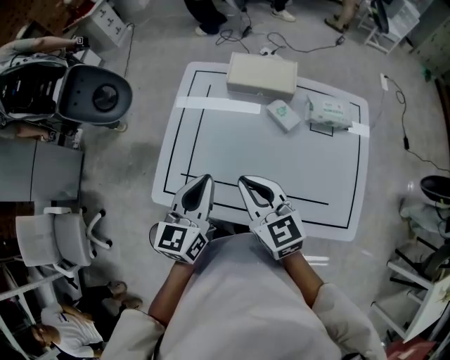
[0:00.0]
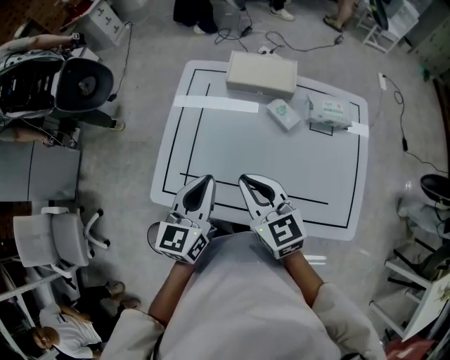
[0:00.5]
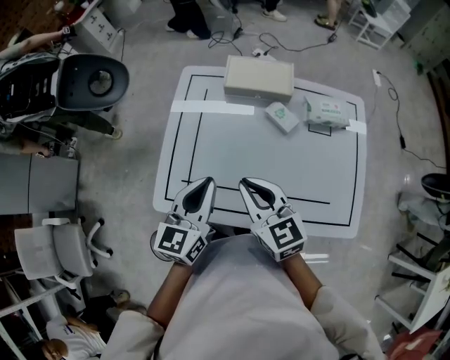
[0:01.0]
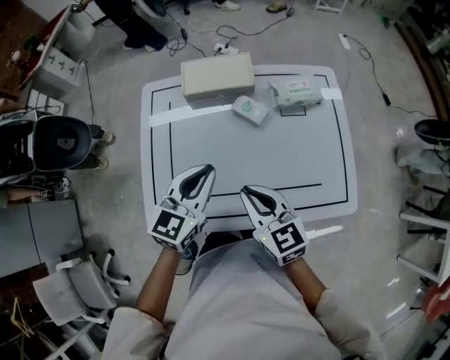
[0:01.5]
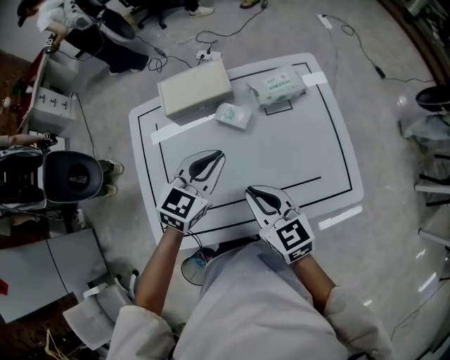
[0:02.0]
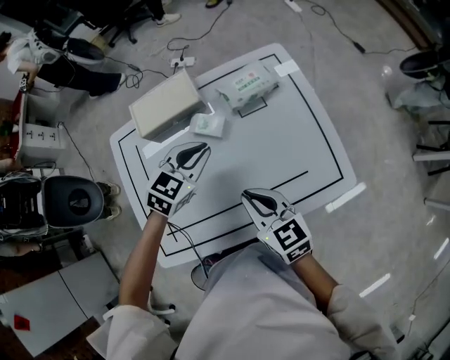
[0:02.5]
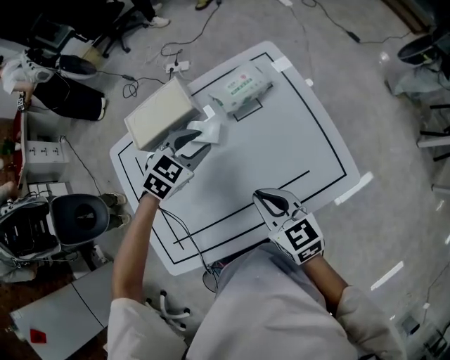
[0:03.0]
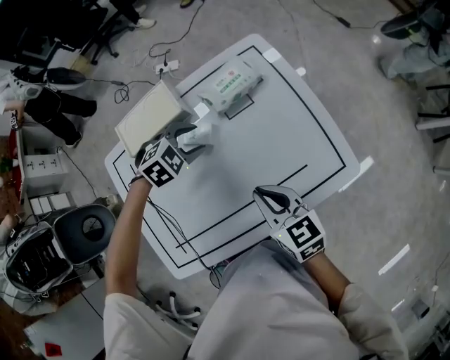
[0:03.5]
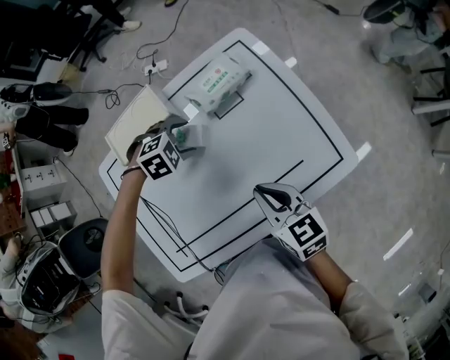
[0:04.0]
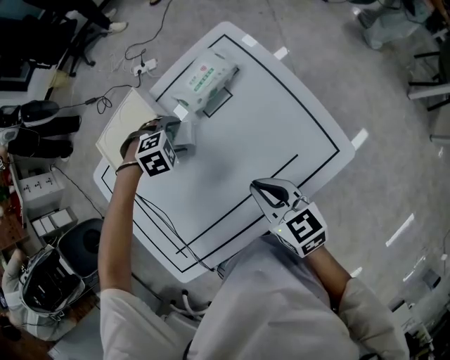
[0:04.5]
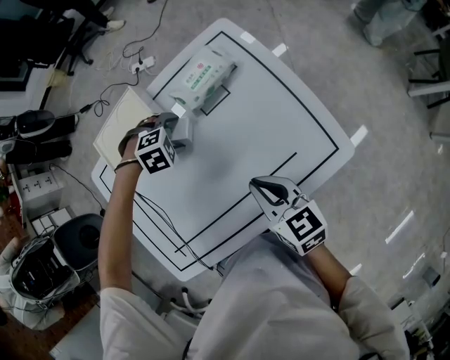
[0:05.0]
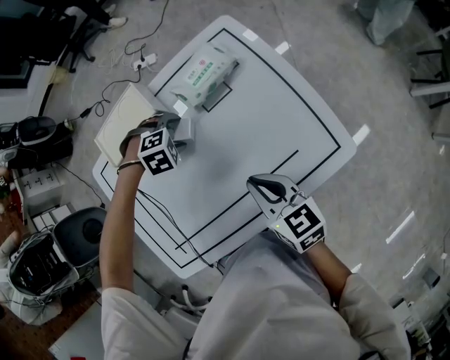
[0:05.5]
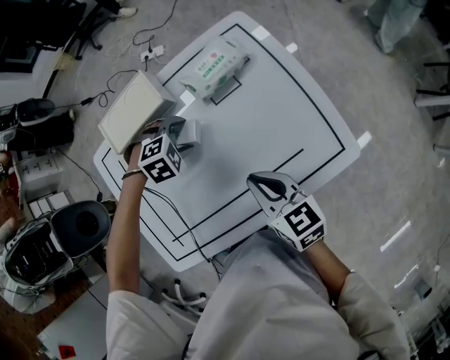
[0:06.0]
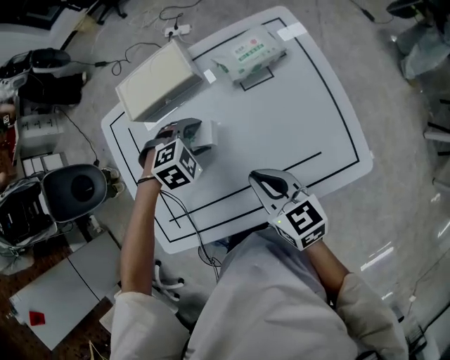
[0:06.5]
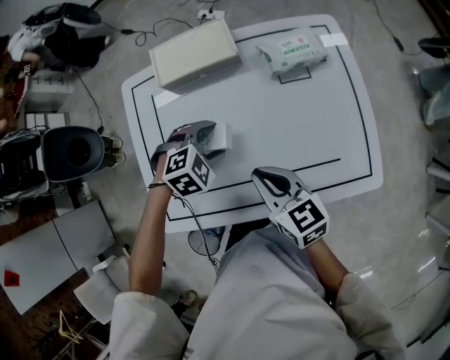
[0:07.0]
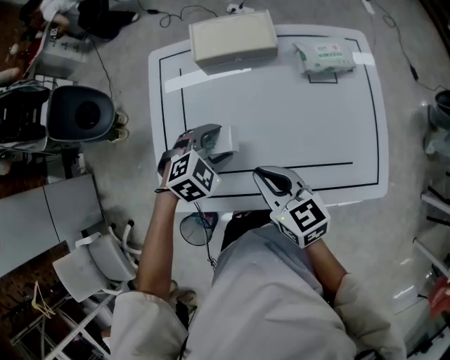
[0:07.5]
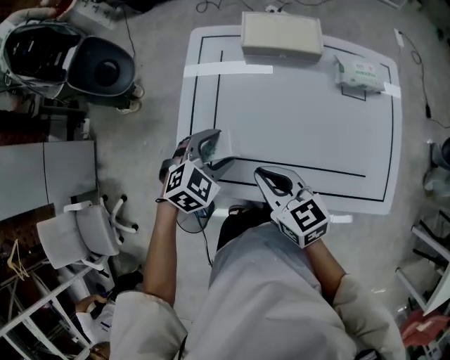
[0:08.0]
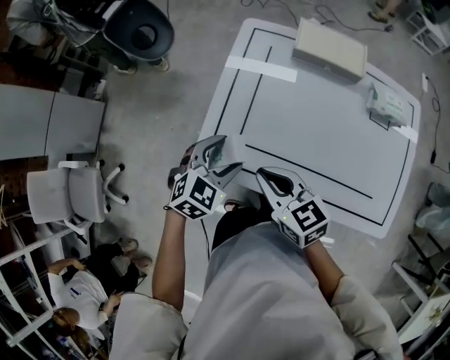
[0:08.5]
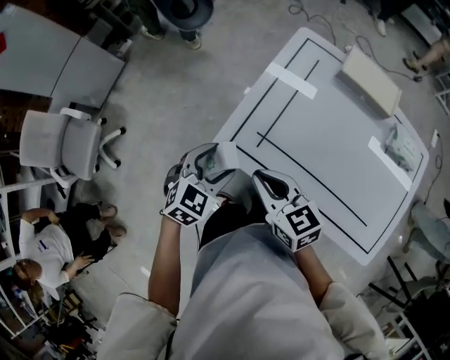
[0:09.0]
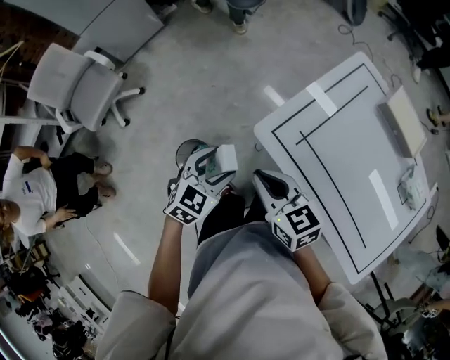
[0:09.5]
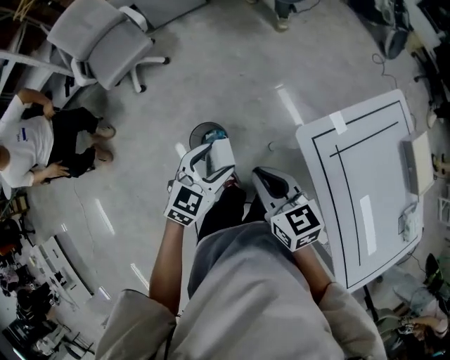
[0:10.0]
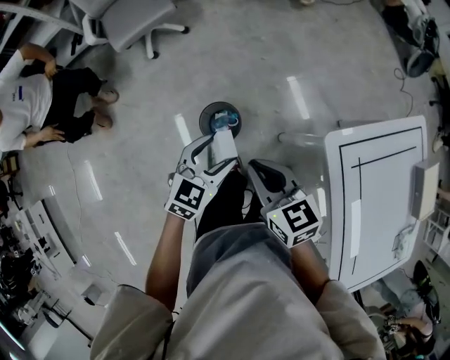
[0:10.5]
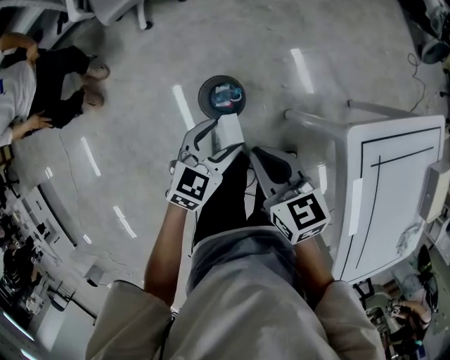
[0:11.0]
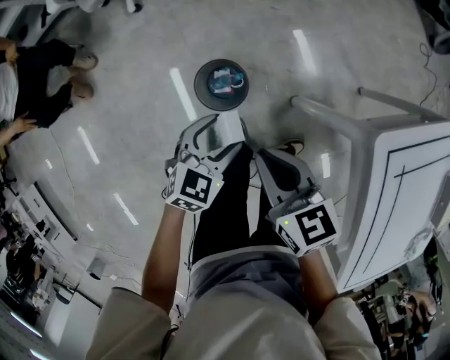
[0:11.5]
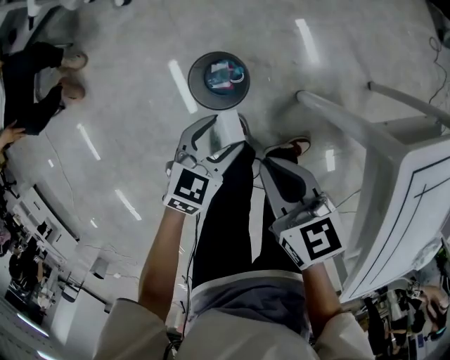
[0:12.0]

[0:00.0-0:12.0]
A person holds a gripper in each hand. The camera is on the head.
0:00.0 to 0:02.0: The left gripper moves roughly 20 cm, and rotates about 50 degrees, while the right gripper ends up approximately 10 cm from where it was, and swivels about 20 degrees.
0:02.0 to 0:04.0: The left gripper goes about 15 cm downward, tips its fingers downward by some 50 degrees, and opens up, while the right gripper changes place by about 10 cm.
0:04.0 to 0:06.0: There are only small adjustments of the grippers.
0:06.0 to 0:08.0: The right gripper changes place by roughly 25 cm, and swivels some 40 degrees; the left gripper changes place by some 30 cm, and twists some 50 degrees counterclockwise, seen from behind.
0:08.0 to 0:10.0: The right gripper ends up about 35 cm from where it was, and rotates approximately 50 degrees; the left gripper shifts by some 40 cm, and rotates about 80 degrees.
0:10.0 to 0:12.0: Both grippers travel together downward, roughly 25 cm. The left gripper rotates about 20 degrees.

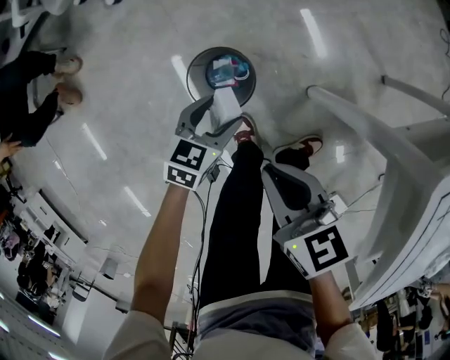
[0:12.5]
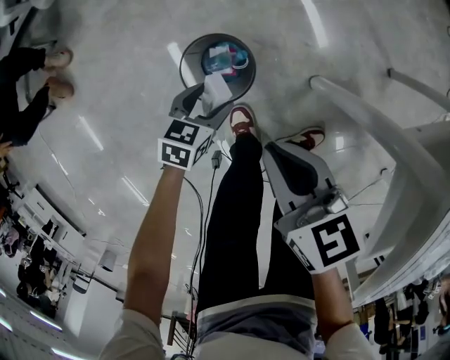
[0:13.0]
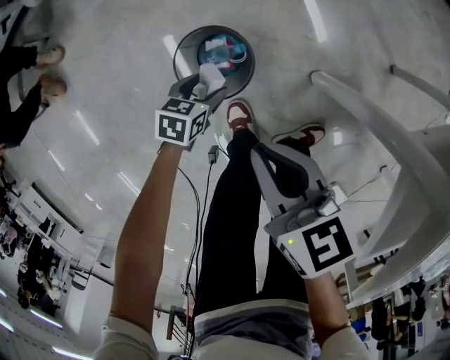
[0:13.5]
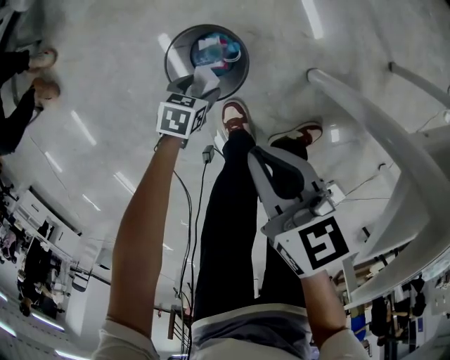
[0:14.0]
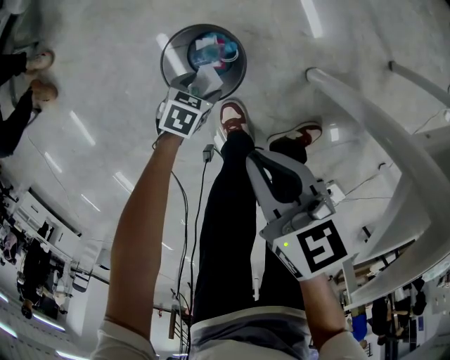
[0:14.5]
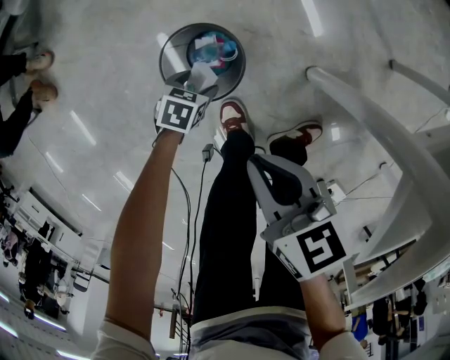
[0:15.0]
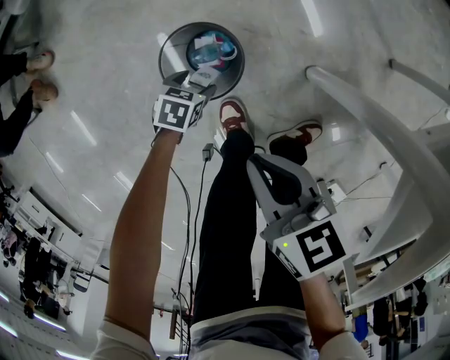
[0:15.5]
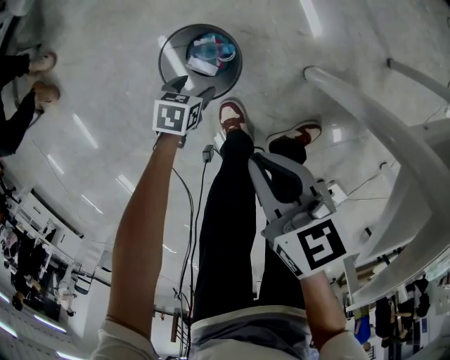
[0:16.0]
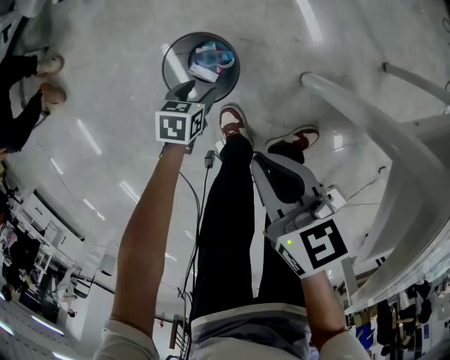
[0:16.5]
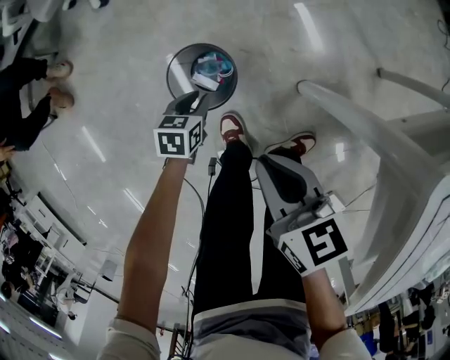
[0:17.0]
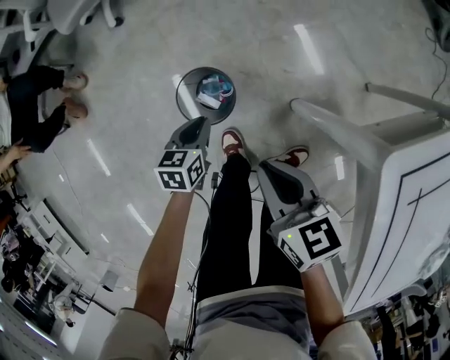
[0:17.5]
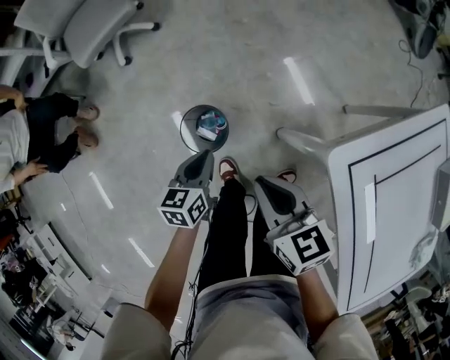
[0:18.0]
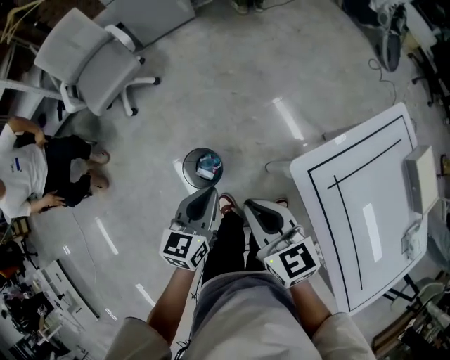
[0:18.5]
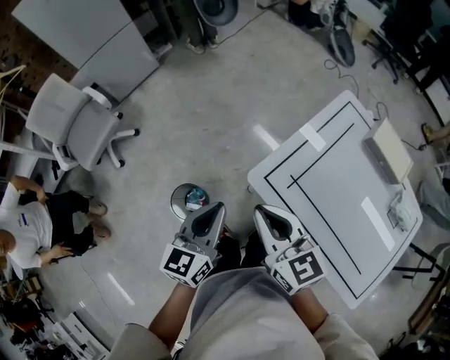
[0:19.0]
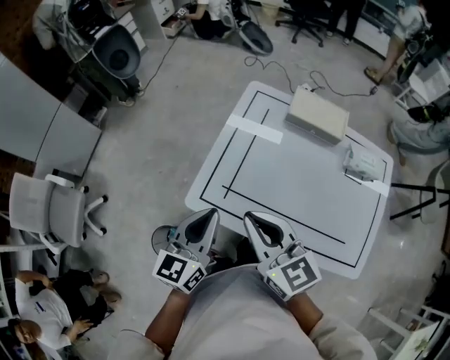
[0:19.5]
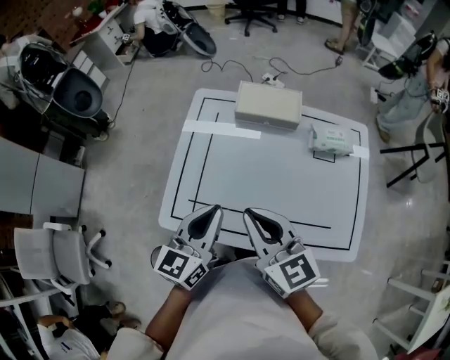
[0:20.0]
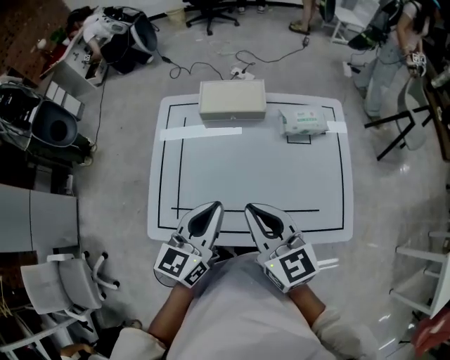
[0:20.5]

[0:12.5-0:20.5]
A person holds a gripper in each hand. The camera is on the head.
0:12.5 to 0:14.5: The left gripper is displaced downward by some 20 cm, and swivels roughly 20 degrees; the right gripper goes some 10 cm downward.
0:14.5 to 0:16.5: The grippers move only a little.
0:16.5 to 0:18.5: The right gripper travels upward by some 35 cm, and changes its angle by roughly 30 degrees, while the left gripper heads upward, covering roughly 50 cm, tilts its fingers roughly 40 degrees upward, and closes its fingers.
0:18.5 to 0:20.5: The two grippers travel together, some 50 cm. The right gripper turns by roughly 70 degrees. Meanwhile the left gripper swivels roughly 70 degrees.

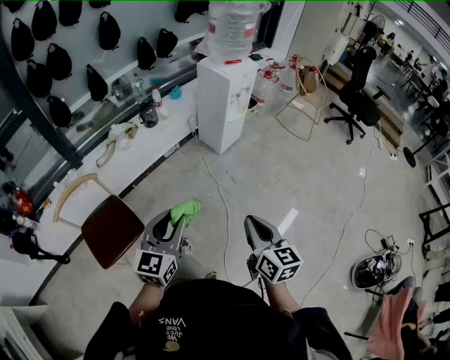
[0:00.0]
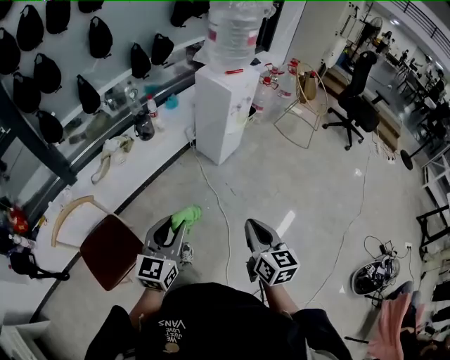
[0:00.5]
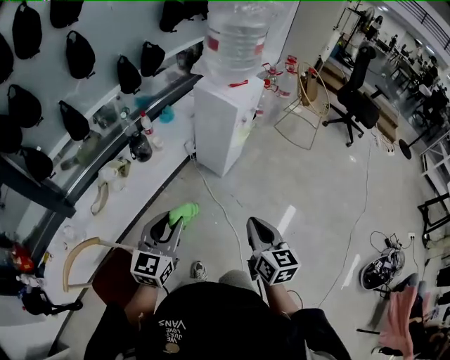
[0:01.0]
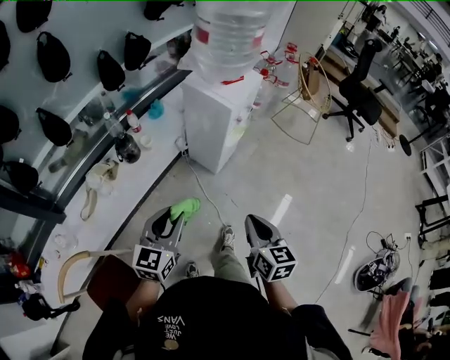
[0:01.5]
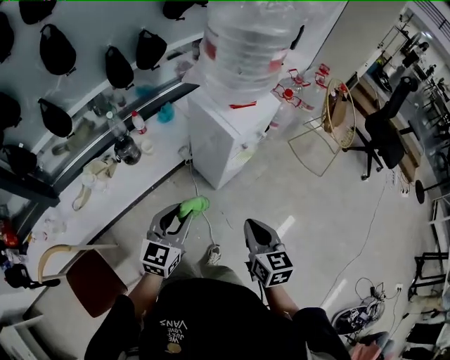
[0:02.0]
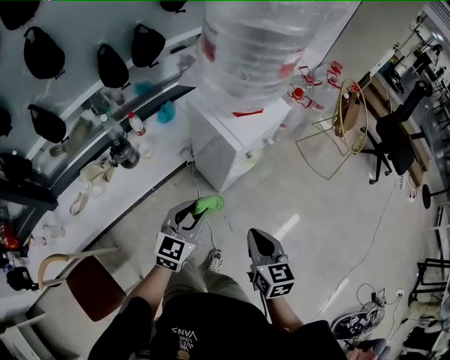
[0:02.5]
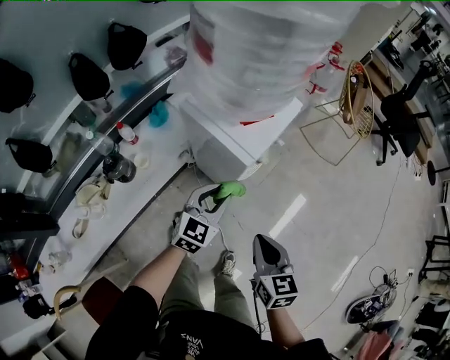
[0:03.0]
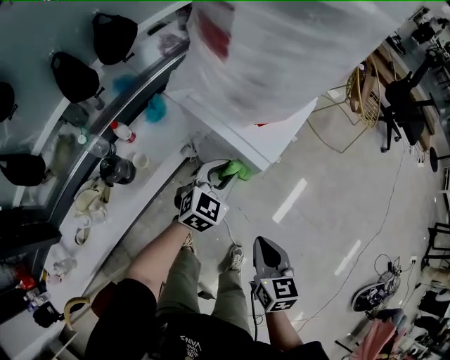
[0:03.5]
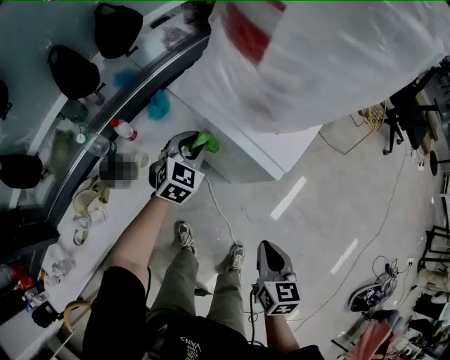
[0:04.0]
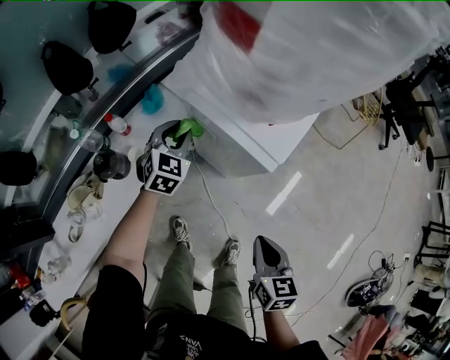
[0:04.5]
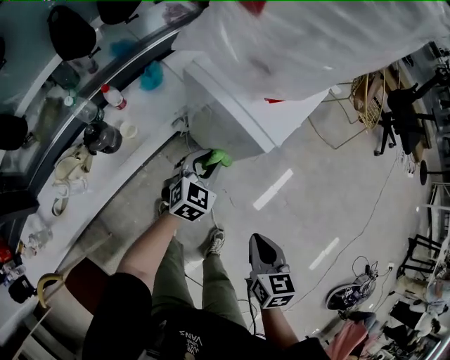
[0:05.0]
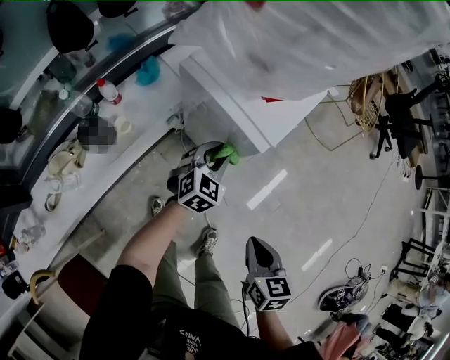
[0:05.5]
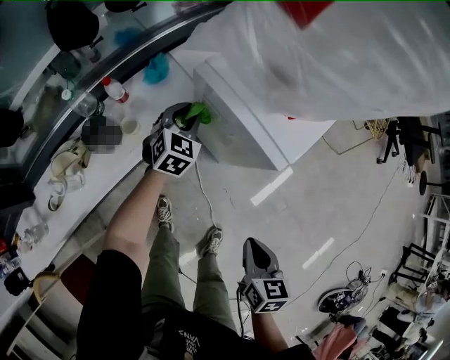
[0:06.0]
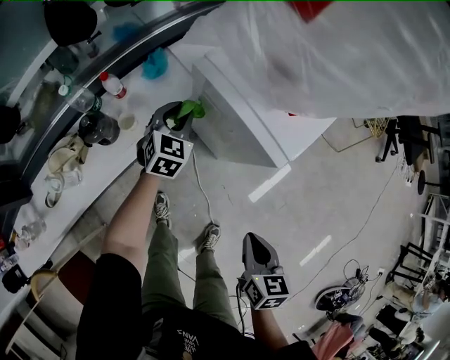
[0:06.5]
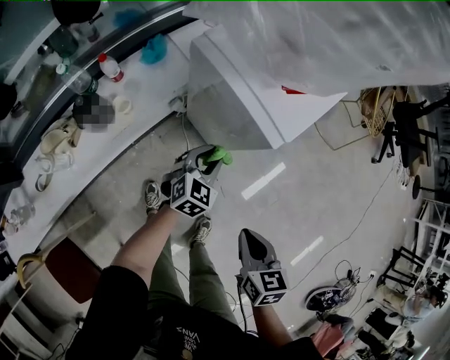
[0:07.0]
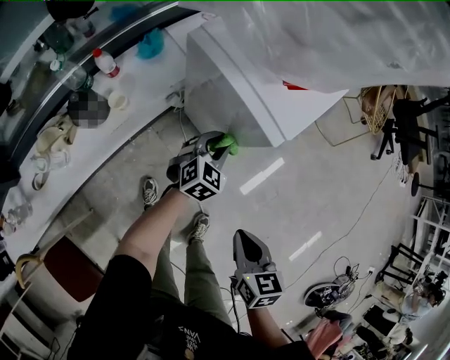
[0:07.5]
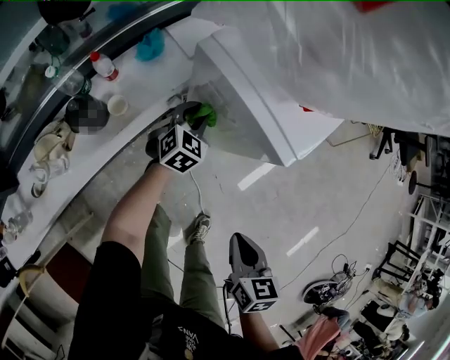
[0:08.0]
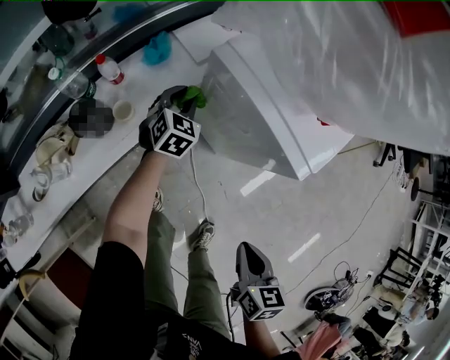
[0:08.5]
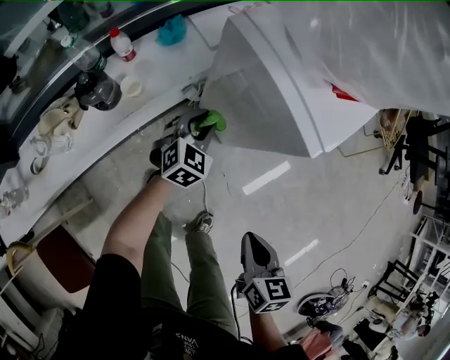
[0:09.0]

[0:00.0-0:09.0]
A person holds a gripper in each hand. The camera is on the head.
0:00.0 to 0:02.0: The two grippers travel together, forward, roughly 50 cm.
0:02.0 to 0:04.5: The right gripper travels downward, forward and to the left by roughly 15 cm, and changes its angle by approximately 20 degrees; the left gripper is displaced forward by approximately 40 cm, and changes its angle by some 30 degrees.
0:04.5 to 0:07.0: The right gripper changes place by approximately 5 cm. The left gripper moves left and right over some 15 cm, changing direction 2 times.
0:07.0 to 0:09.0: The left gripper travels to the left and forward by approximately 10 cm.
